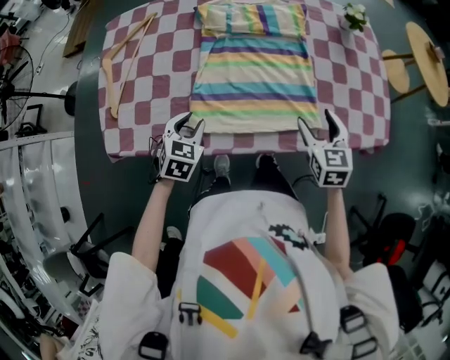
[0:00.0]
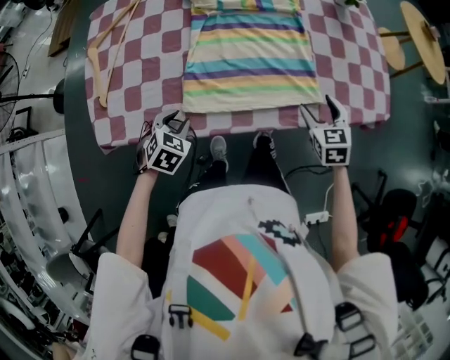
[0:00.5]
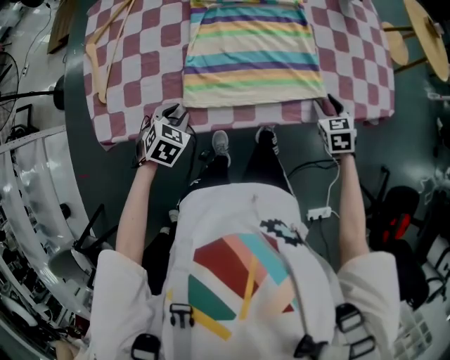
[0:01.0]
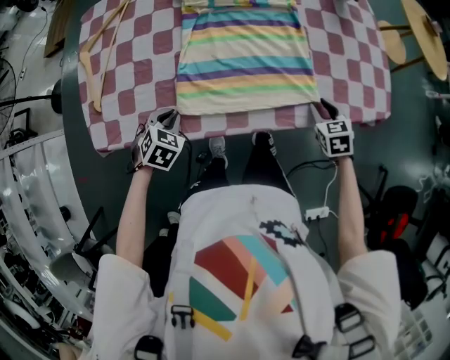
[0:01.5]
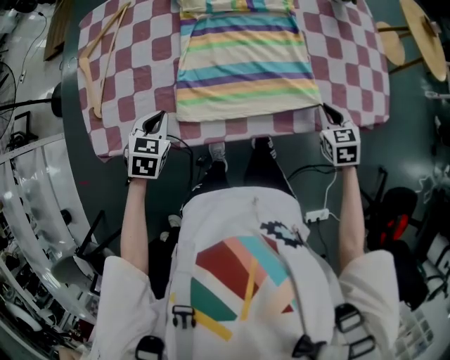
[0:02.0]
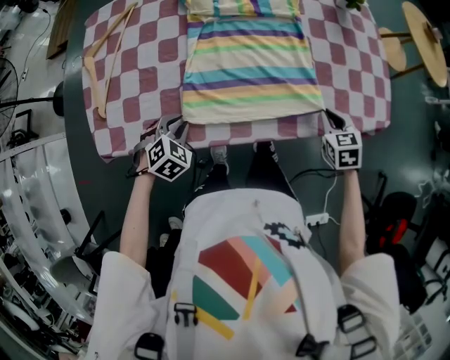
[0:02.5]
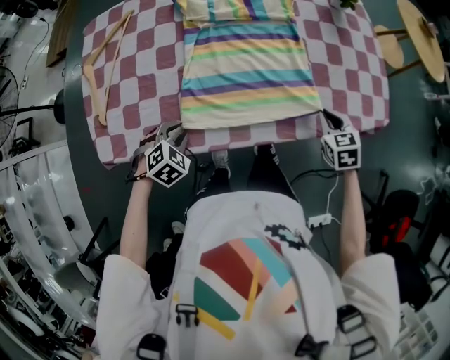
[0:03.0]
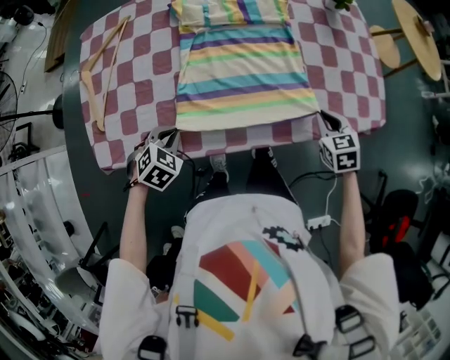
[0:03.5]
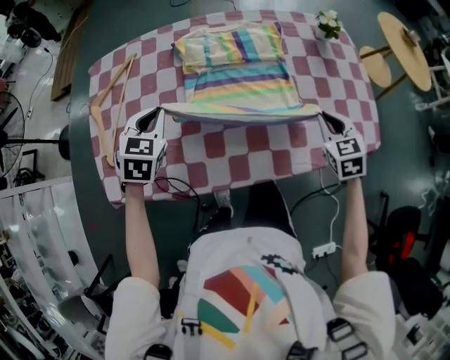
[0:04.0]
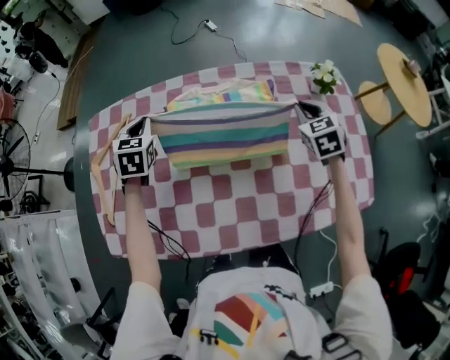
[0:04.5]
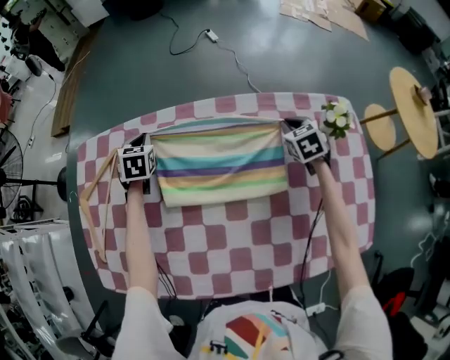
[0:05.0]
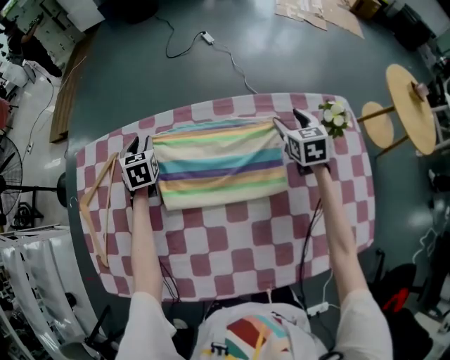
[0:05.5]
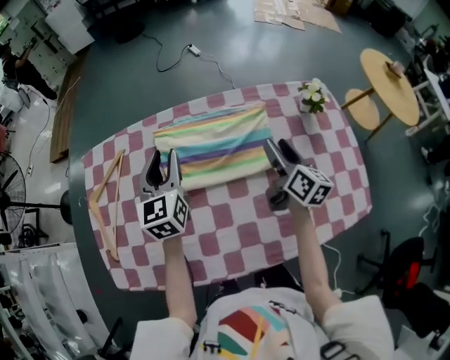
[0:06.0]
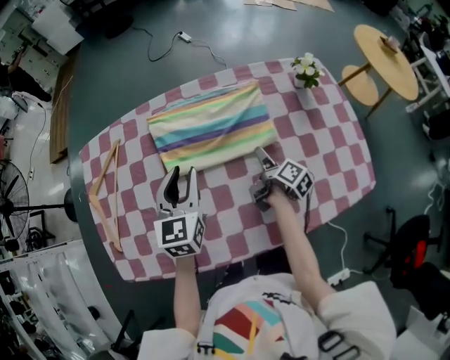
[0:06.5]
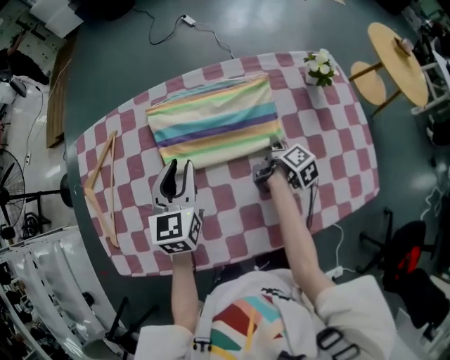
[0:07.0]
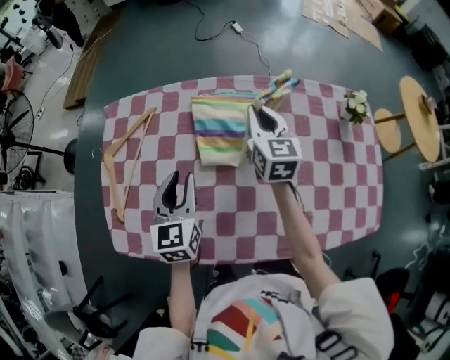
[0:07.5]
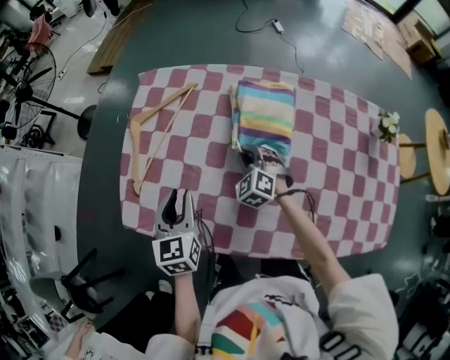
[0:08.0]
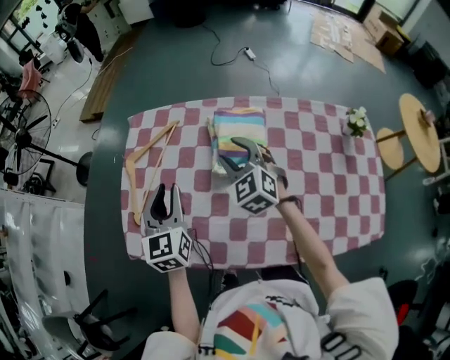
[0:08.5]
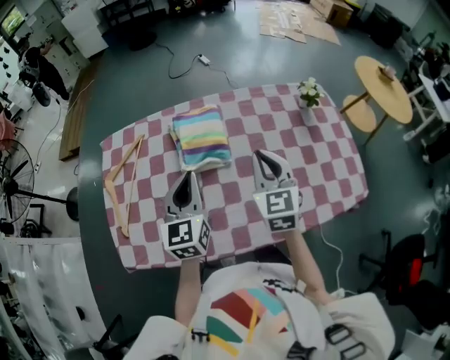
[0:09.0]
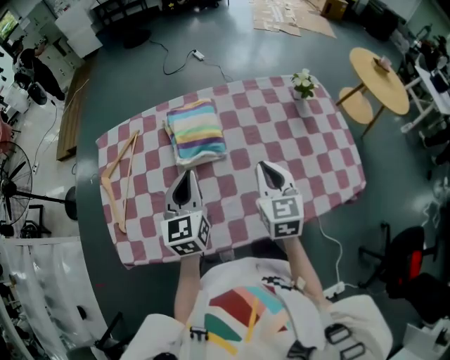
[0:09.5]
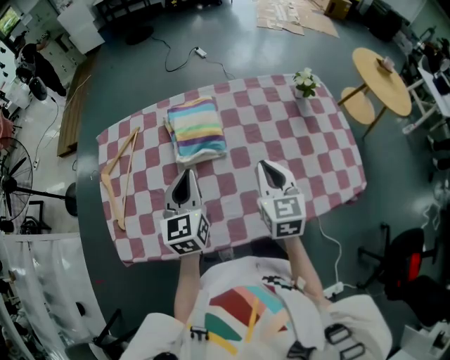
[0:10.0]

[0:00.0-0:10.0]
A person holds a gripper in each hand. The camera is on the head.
0:00.0 to 0:02.0: The left gripper moves to the left, about 5 cm, and closes up, while the right gripper heads to the right and downward, covering roughly 10 cm, and closes.
0:02.0 to 0:04.0: The left gripper heads forward and upward, covering about 20 cm. Meanwhile the right gripper shifts about 15 cm upward and forward.
0:04.0 to 0:06.0: The right gripper heads forward, covering approximately 20 cm, rotates around the line of its fingers by approximately 60 degrees, clockwise from behind, and opens; the left gripper is displaced forward and to the right by approximately 20 cm, swivels roughly 40 degrees, and opens.
0:06.0 to 0:08.0: The right gripper moves up and down over roughly 20 cm, changing direction 2 times, twists some 90 degrees counterclockwise, seen from behind, and closes its fingers; the left gripper changes place by roughly 30 cm, and turns by about 20 degrees.
0:08.0 to 0:10.0: The left gripper changes place by approximately 20 cm, turns by roughly 30 degrees, and closes its fingers; the right gripper ends up approximately 35 cm from where it was, rolls clockwise, seen from behind, by approximately 60 degrees, and opens and closes again.

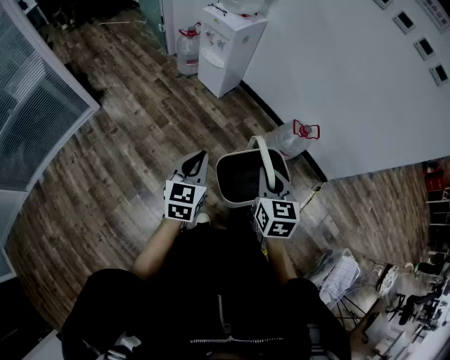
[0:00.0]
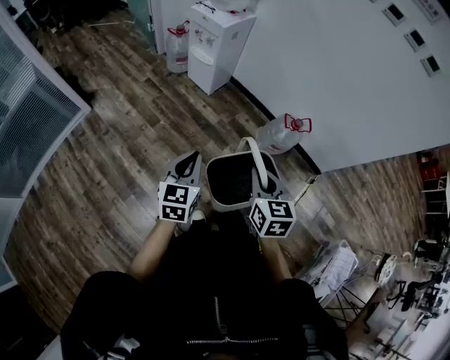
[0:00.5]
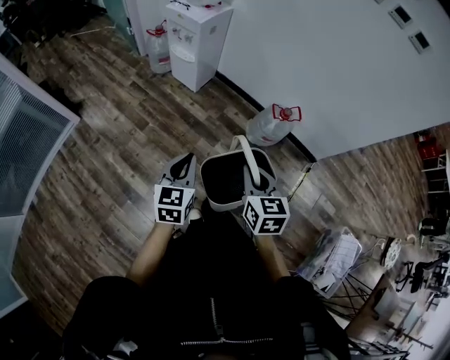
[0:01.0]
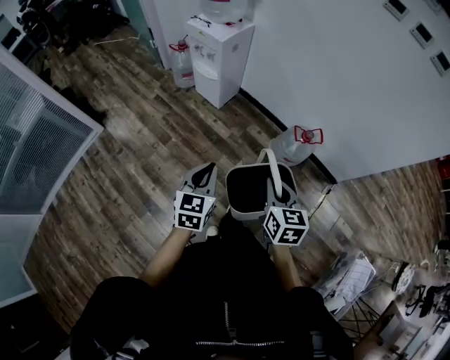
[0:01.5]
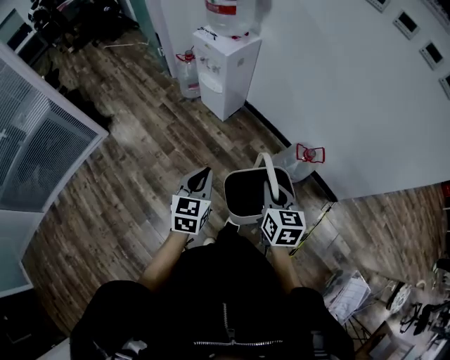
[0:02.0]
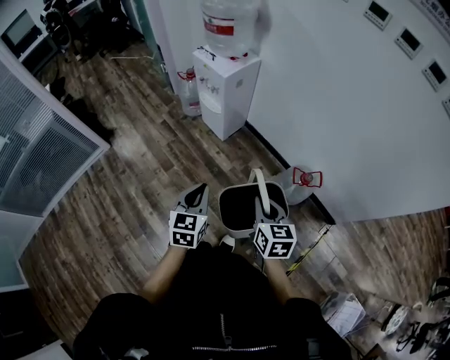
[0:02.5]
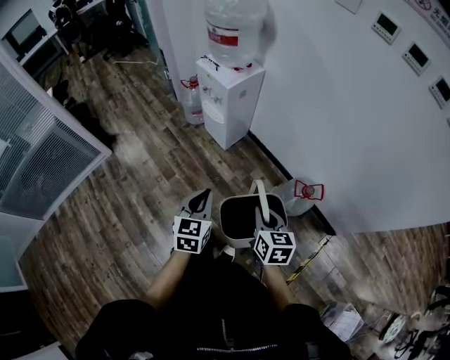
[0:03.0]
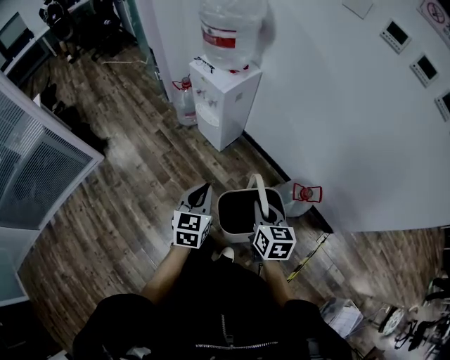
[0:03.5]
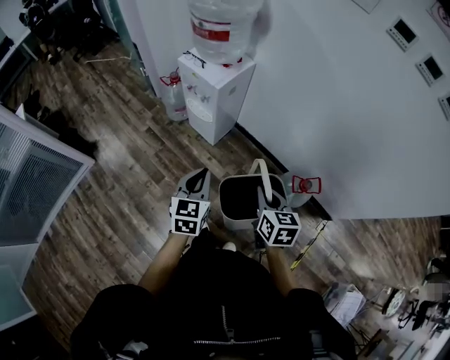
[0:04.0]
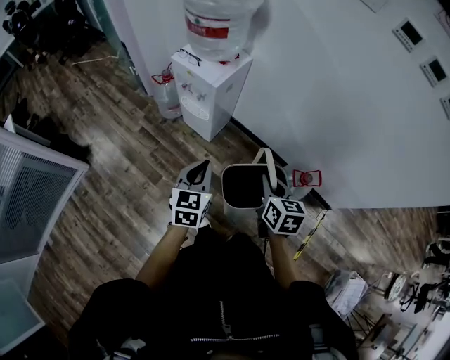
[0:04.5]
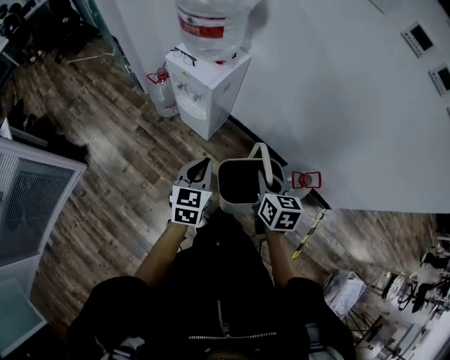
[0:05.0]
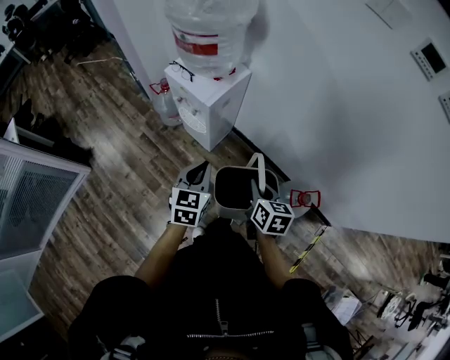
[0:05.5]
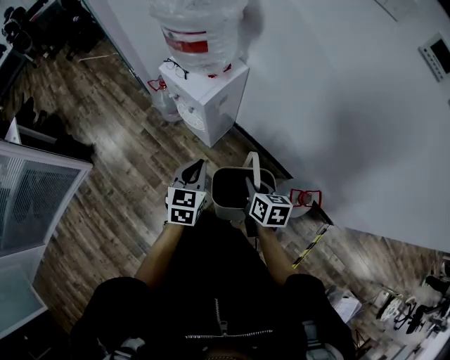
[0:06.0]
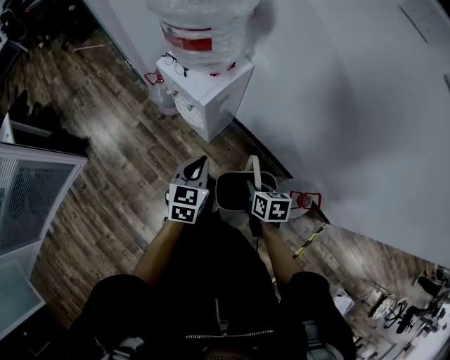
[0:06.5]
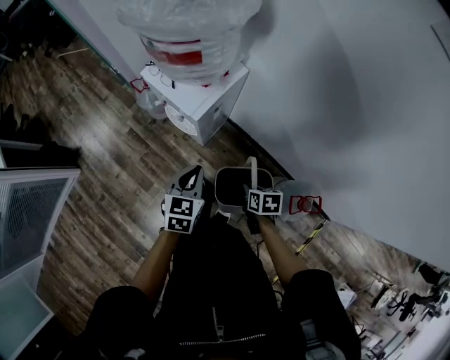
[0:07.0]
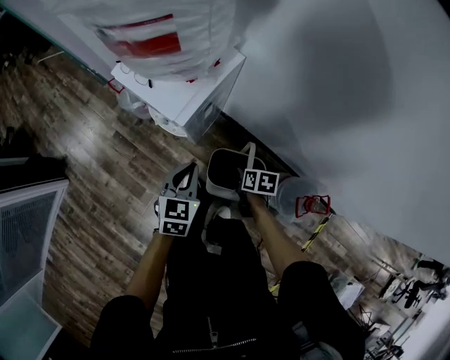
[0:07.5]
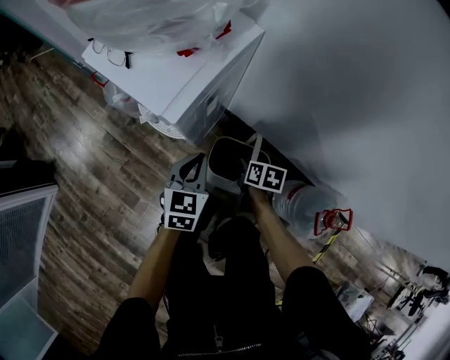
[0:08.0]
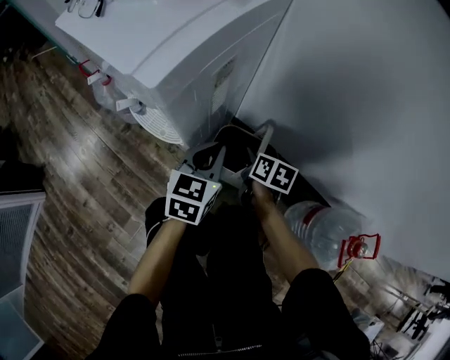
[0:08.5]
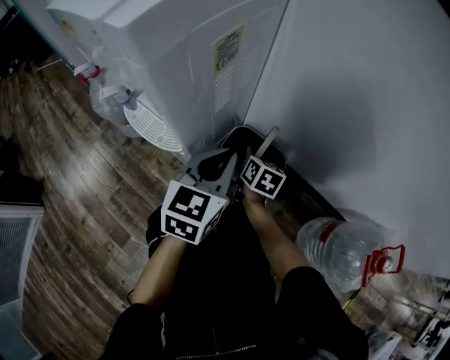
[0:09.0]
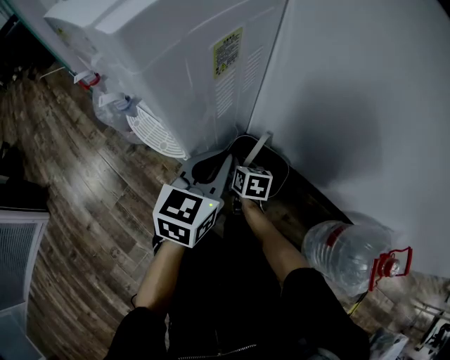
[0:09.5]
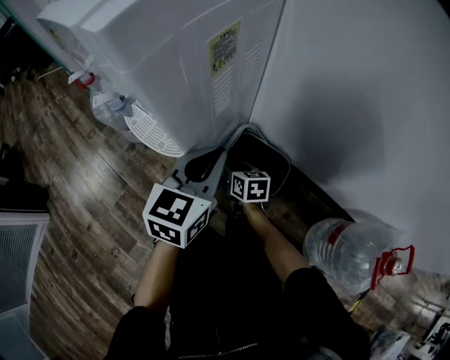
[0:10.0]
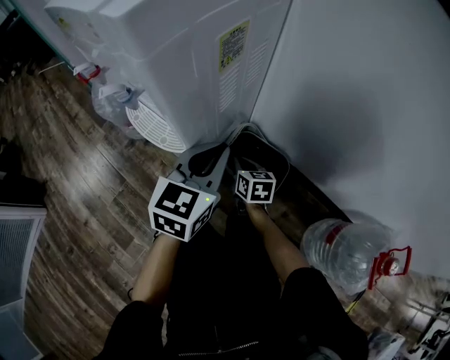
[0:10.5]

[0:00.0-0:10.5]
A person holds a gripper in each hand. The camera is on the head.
0:00.0 to 0:02.0: The right gripper is displaced forward and to the right by roughly 10 cm. The left gripper is displaced forward by approximately 10 cm.
0:02.0 to 0:04.0: Both grippers move forward, roughly 20 cm.
0:04.0 to 0:06.5: The left gripper is displaced forward by roughly 20 cm. Meanwhile the right gripper is displaced forward and downward by roughly 20 cm, and turns by some 20 degrees.
0:06.5 to 0:08.5: Both grippers travel together downward and forward, roughly 50 cm. The right gripper swivels about 20 degrees.
0:08.5 to 0:10.5: The right gripper shifts approximately 15 cm downward and to the left, rotates some 20 degrees, and opens, then closes again.

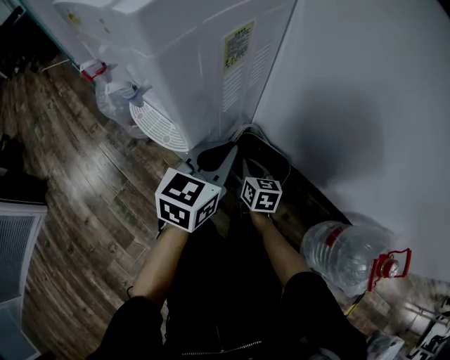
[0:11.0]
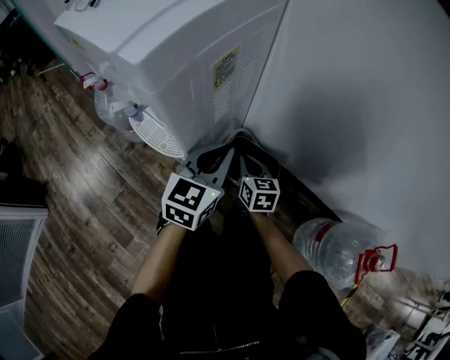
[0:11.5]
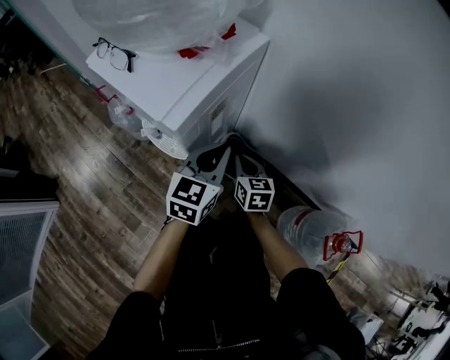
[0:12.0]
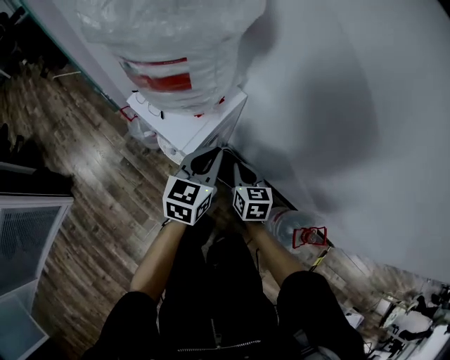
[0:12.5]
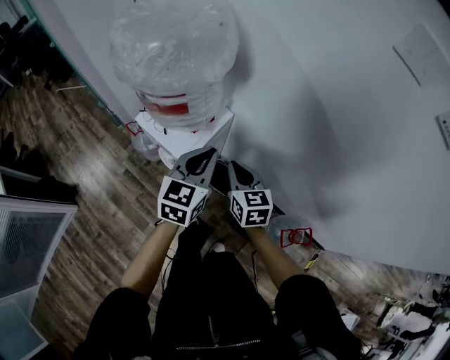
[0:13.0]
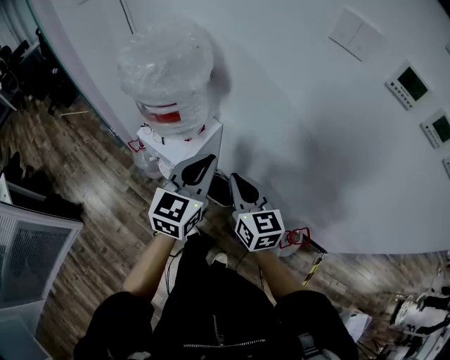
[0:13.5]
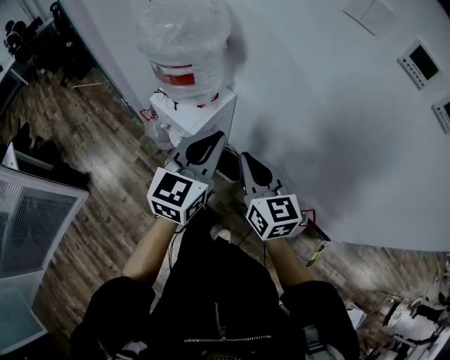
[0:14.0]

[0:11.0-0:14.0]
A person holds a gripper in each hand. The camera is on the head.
0:11.0 to 0:12.5: Both grippers move upward, some 40 cm.
0:12.5 to 0:14.0: The two grippers go some 35 cm upward and backward. The right gripper changes its angle by about 20 degrees.

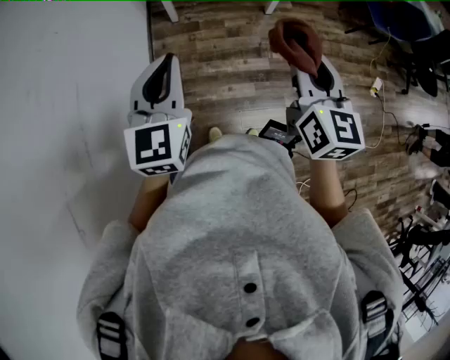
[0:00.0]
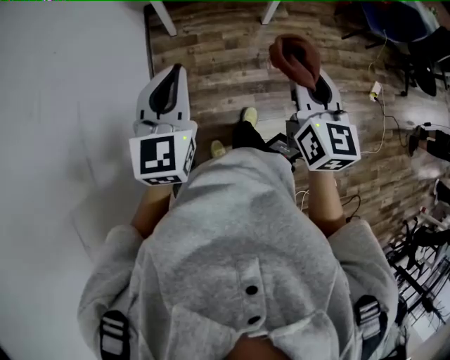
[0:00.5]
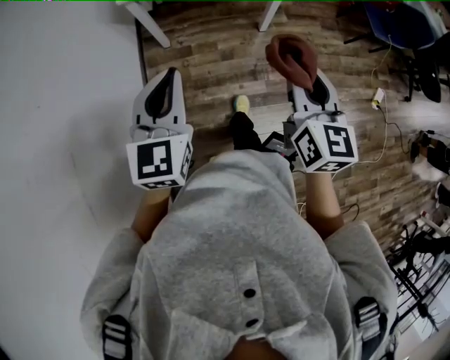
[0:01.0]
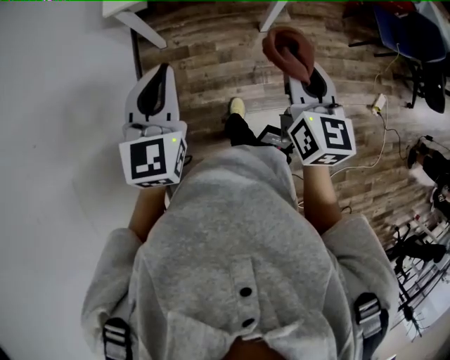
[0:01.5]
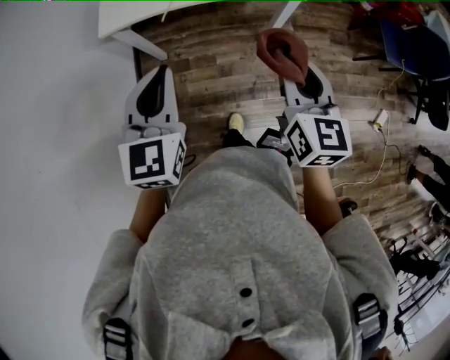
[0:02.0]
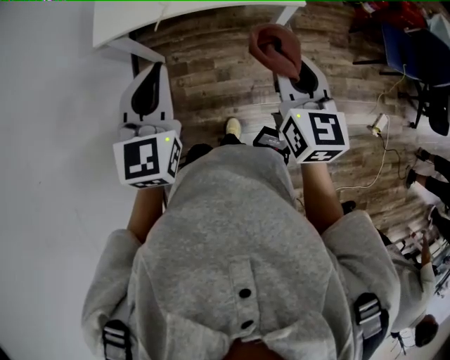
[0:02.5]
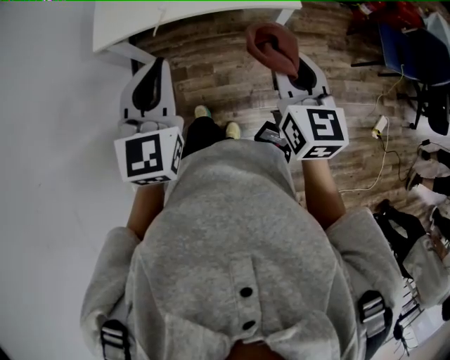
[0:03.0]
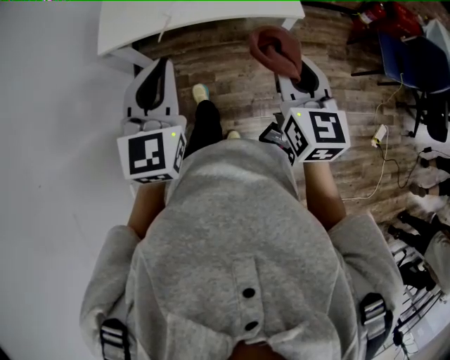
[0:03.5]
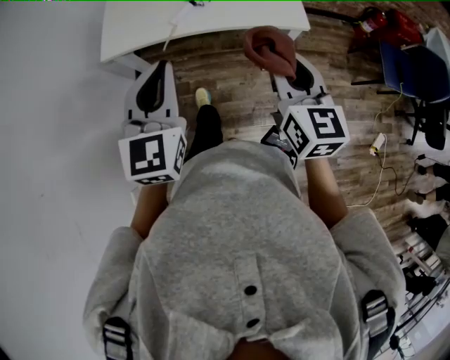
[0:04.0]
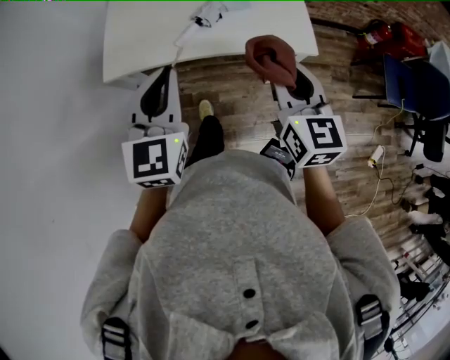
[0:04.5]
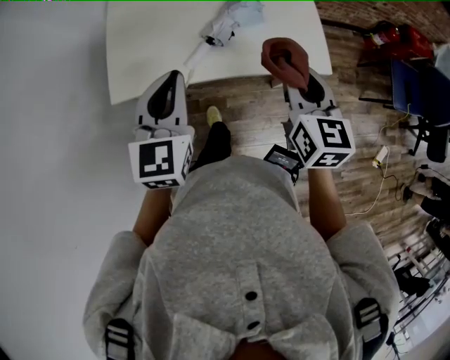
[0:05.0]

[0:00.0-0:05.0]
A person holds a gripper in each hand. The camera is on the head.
0:00.0 to 0:02.5: Both grippers are carried forward, approximately 50 cm.
0:02.5 to 0:05.0: The two grippers go some 30 cm forward.
